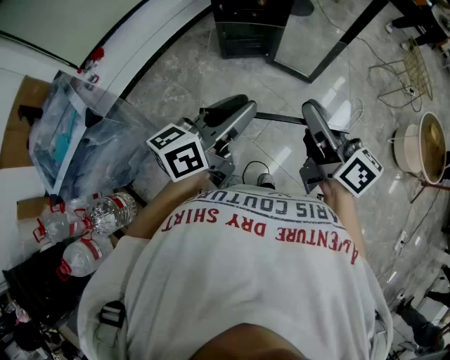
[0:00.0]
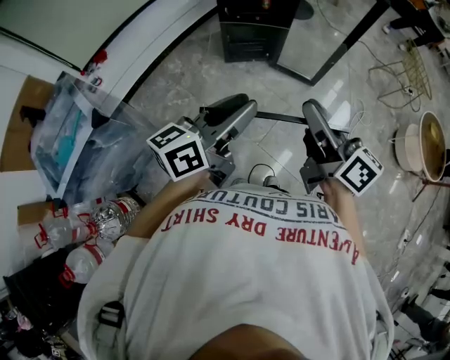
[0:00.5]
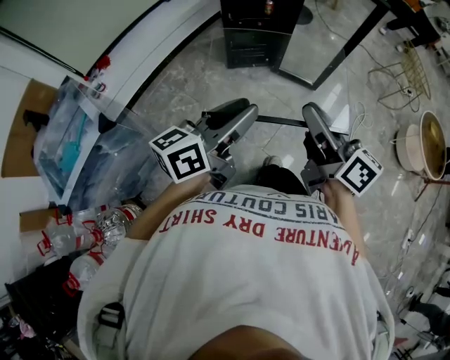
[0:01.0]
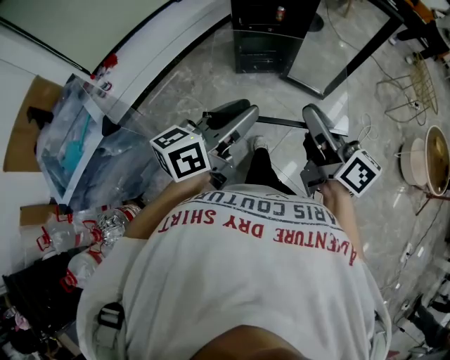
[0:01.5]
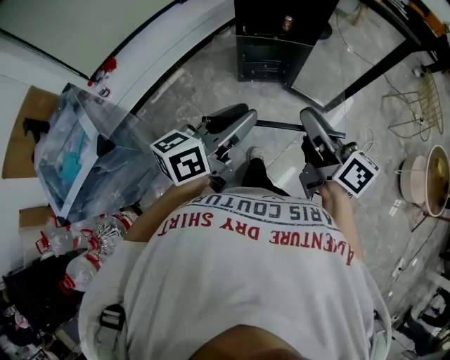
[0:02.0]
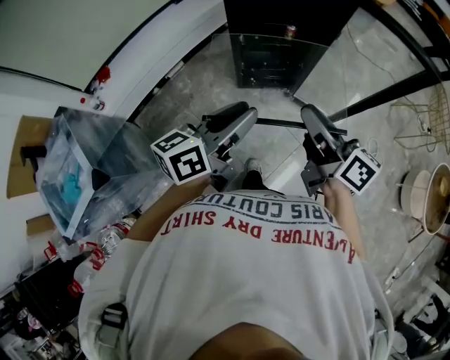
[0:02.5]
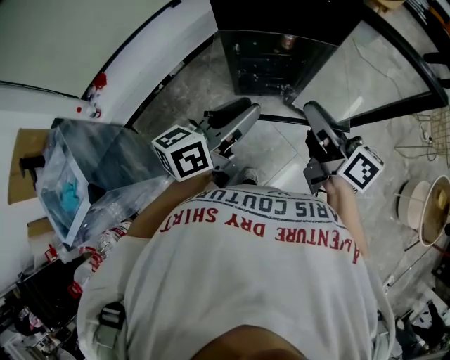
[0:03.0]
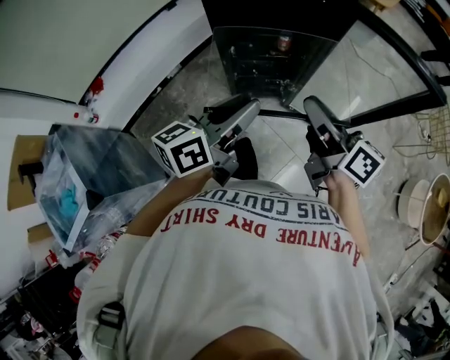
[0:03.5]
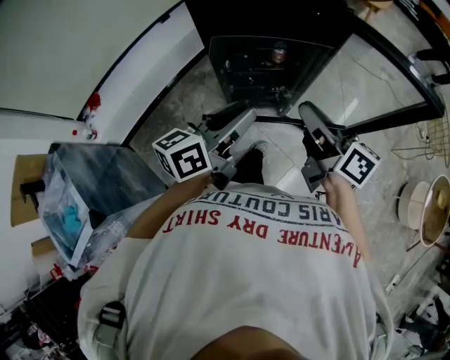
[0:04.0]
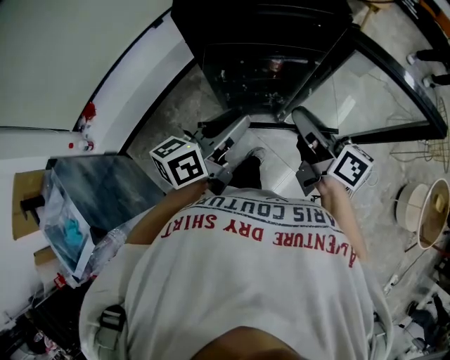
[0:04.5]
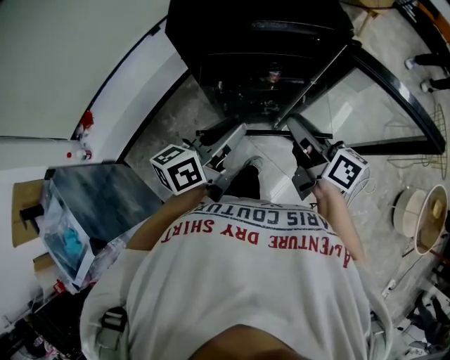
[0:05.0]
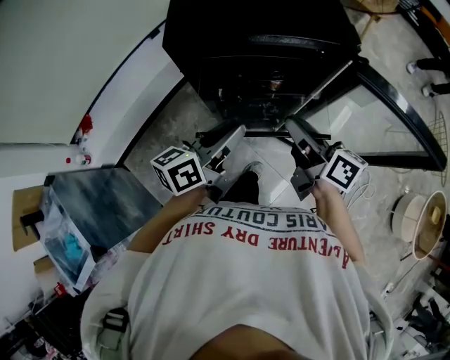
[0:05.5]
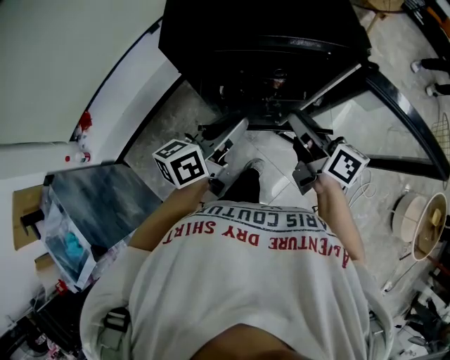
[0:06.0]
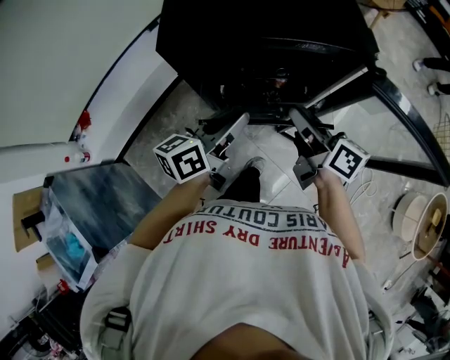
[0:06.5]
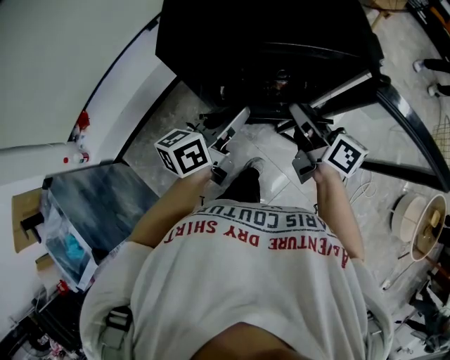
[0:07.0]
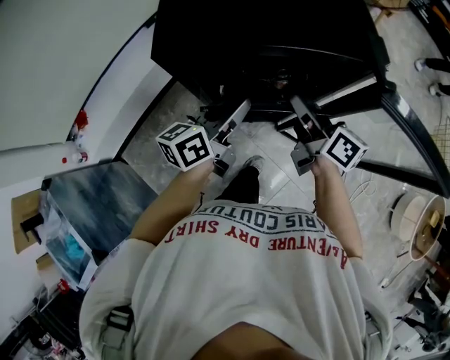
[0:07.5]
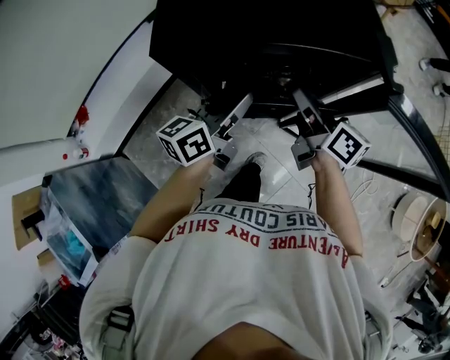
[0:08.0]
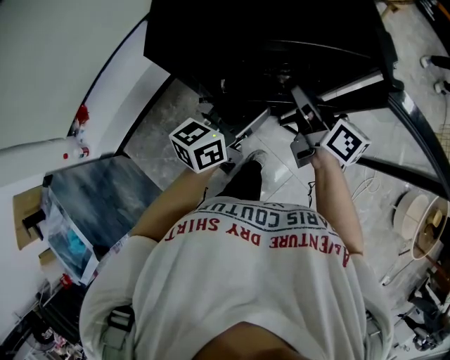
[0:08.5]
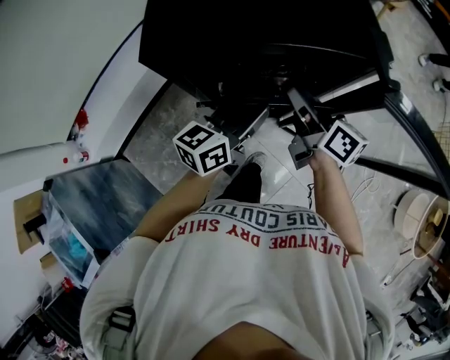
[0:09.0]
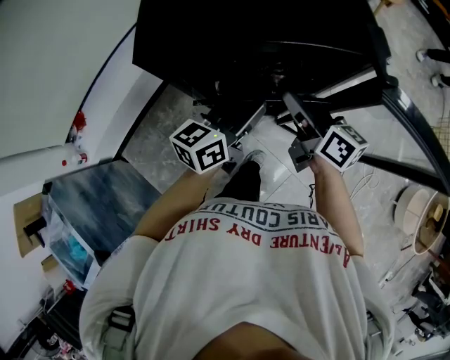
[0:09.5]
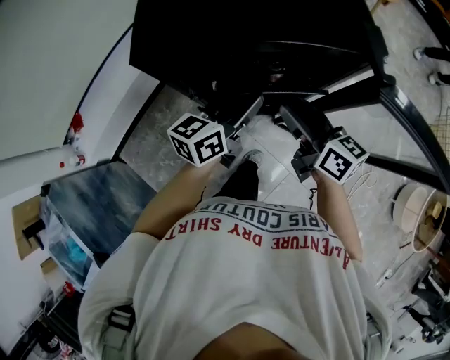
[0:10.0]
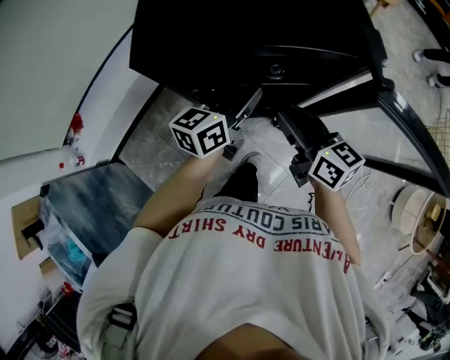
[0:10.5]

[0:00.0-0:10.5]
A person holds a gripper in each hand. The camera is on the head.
0:00.0 to 0:02.0: The grippers both shift forward and to the left by some 15 cm.
0:02.0 to 0:04.0: The grippers both shift forward by some 30 cm.
0:04.0 to 0:06.5: The grippers both shift forward and downward by about 15 cm.
0:06.5 to 0:08.5: The right gripper goes roughly 5 cm forward. The left gripper moves about 5 cm.
0:08.5 to 0:10.5: The right gripper moves backward, some 5 cm. The left gripper moves forward, approximately 5 cm, and closes its fingers.

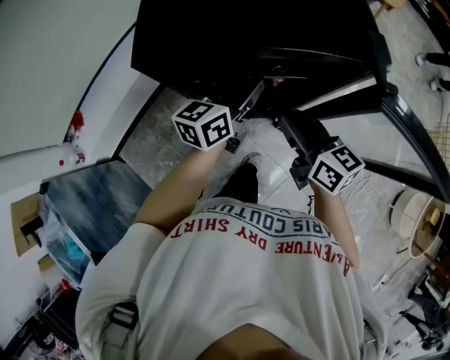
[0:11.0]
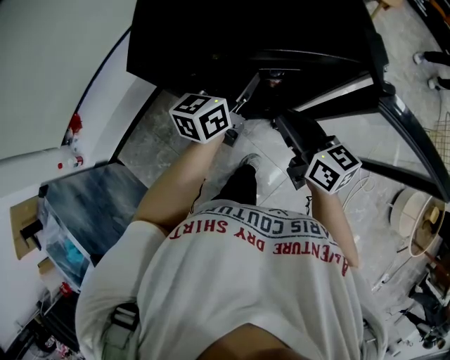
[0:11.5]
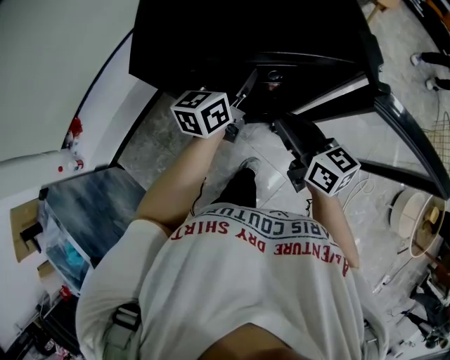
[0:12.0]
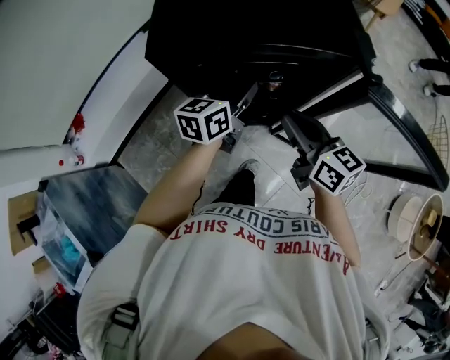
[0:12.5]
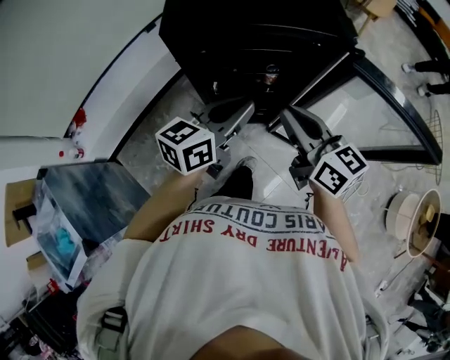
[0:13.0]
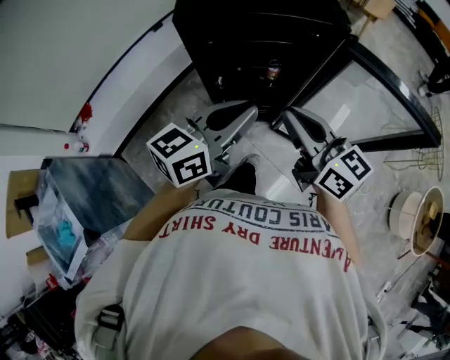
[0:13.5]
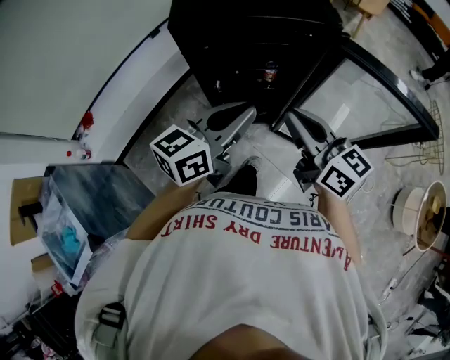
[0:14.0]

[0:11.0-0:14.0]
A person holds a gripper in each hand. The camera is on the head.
0:11.0 to 0:12.5: There are only small adjustments of the grippers.
0:12.5 to 0:14.0: The right gripper travels backward and upward by some 15 cm; the left gripper heads backward and upward, covering roughly 25 cm, and closes its fingers.

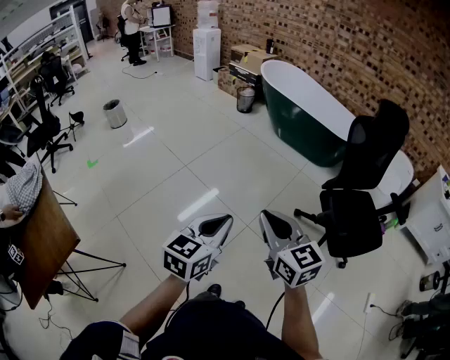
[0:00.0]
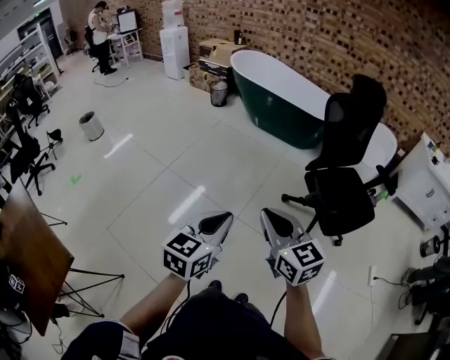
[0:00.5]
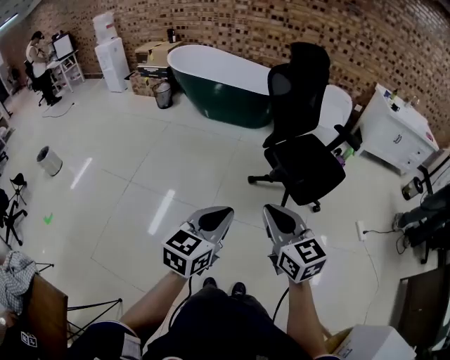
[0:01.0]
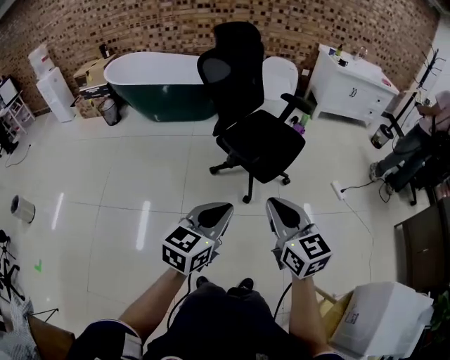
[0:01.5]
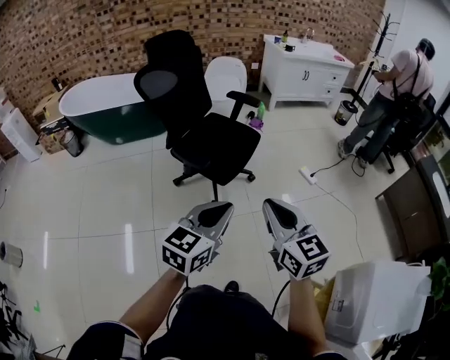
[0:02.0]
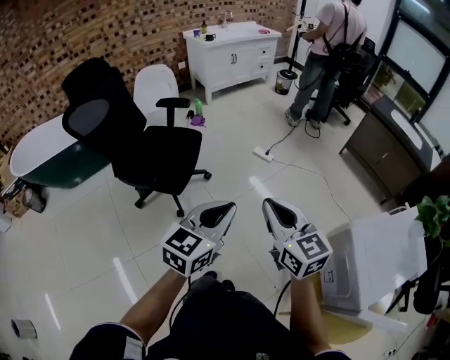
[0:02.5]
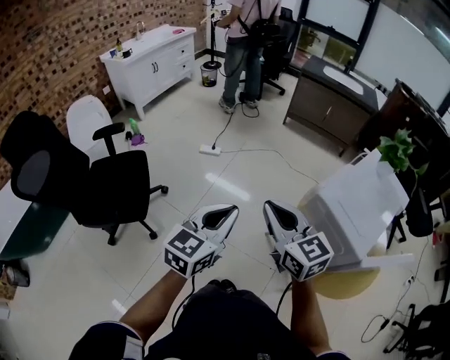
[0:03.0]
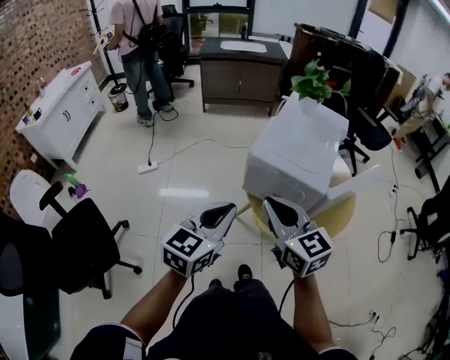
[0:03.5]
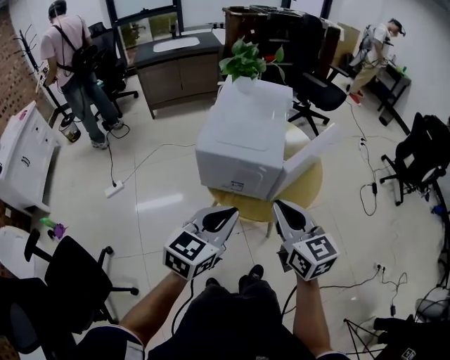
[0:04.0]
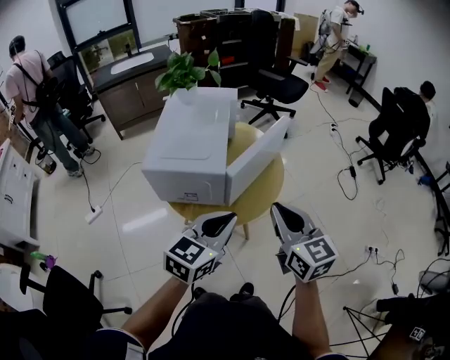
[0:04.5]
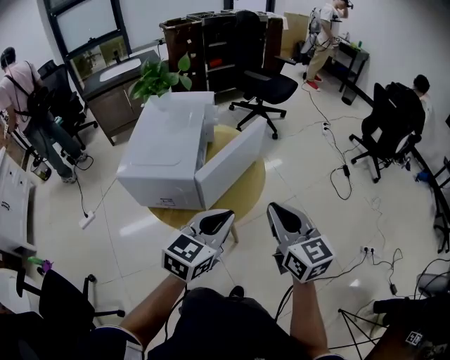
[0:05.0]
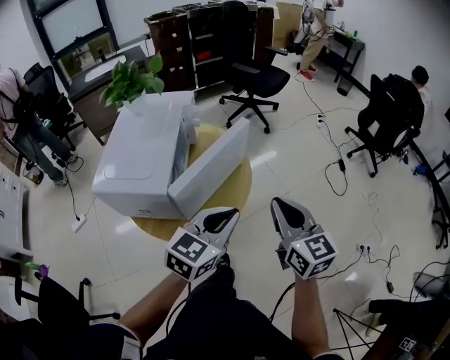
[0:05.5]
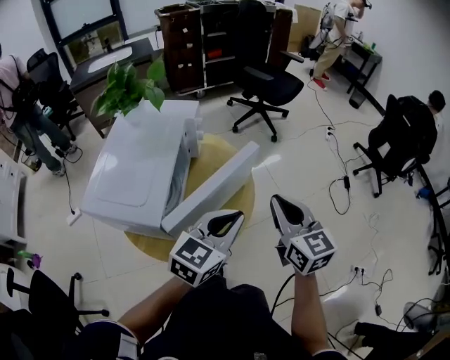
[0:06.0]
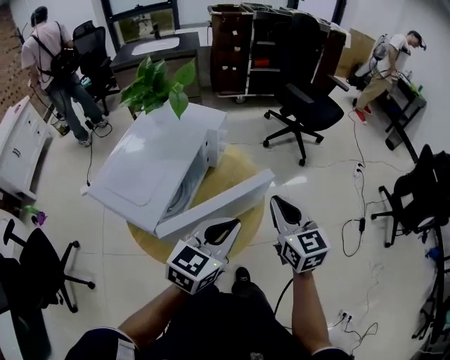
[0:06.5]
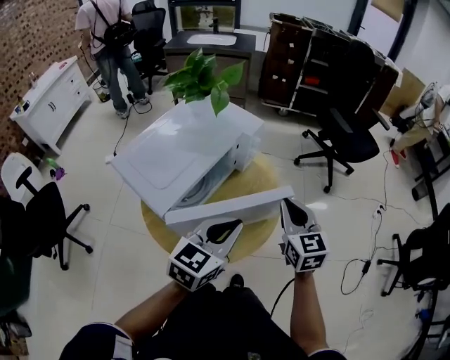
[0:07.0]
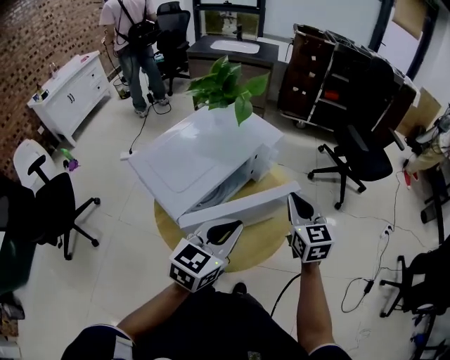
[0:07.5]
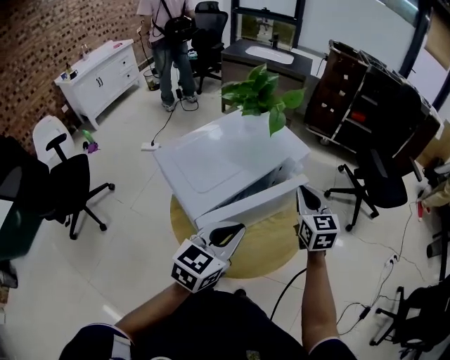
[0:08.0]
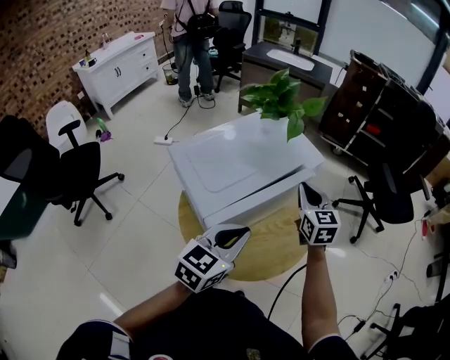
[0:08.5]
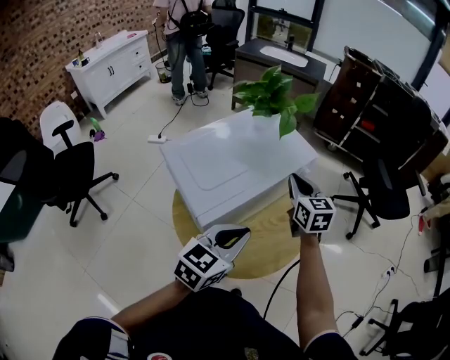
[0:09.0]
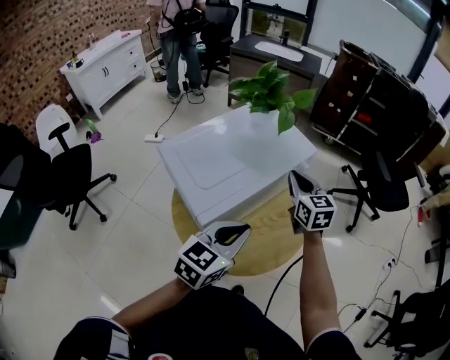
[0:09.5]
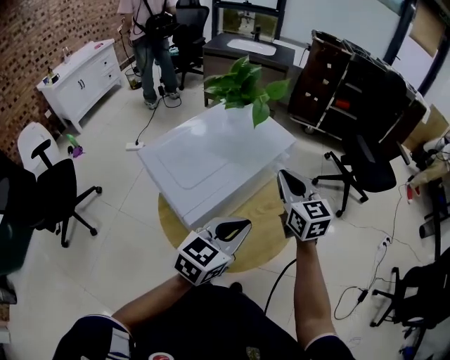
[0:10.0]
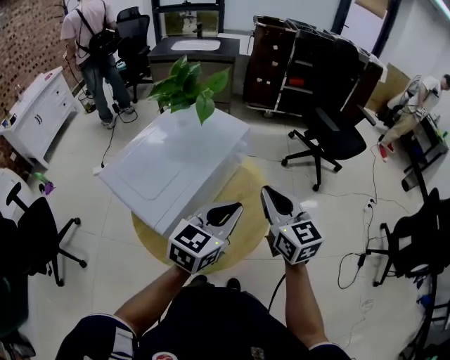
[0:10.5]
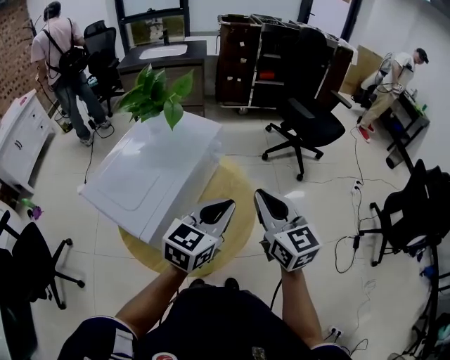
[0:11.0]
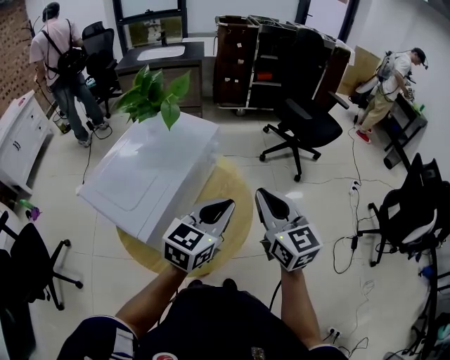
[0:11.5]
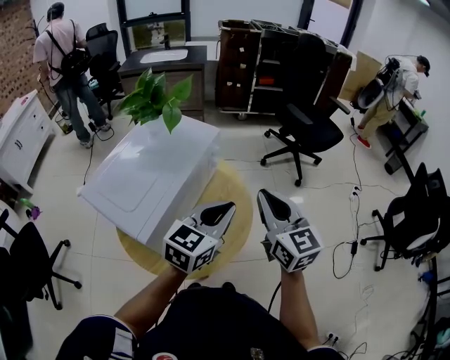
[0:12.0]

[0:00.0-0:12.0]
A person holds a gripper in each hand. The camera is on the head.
0:00.0 to 0:02.0: The pair of grippers is taken about 40 cm. The left gripper changes its angle by some 60 degrees, while the right gripper changes its angle by about 60 degrees.
0:02.0 to 0:04.0: The pair of grippers is taken roughly 40 cm. The right gripper swivels some 90 degrees. Meanwhile the left gripper turns by about 100 degrees.
0:04.0 to 0:06.0: The grippers both shift to the right and forward by some 35 cm.
0:06.0 to 0:08.0: The left gripper ends up some 10 cm from where it was, and rotates some 50 degrees. Meanwhile the right gripper changes place by some 25 cm, and rotates roughly 40 degrees.
0:08.0 to 0:10.0: The right gripper ends up some 5 cm from where it was.
0:10.0 to 0:12.0: The left gripper travels to the right by approximately 10 cm; the right gripper travels to the right and backward by about 15 cm.

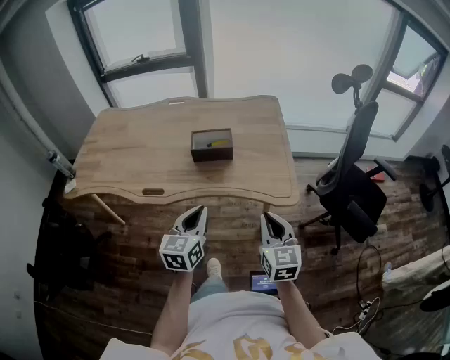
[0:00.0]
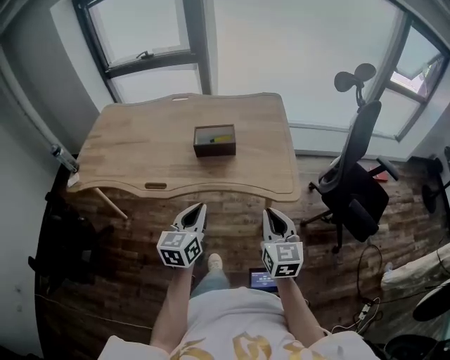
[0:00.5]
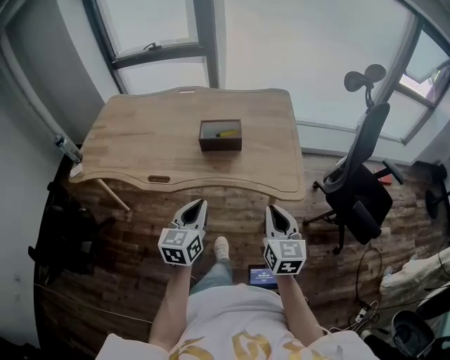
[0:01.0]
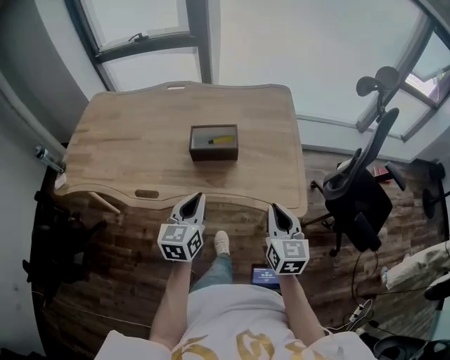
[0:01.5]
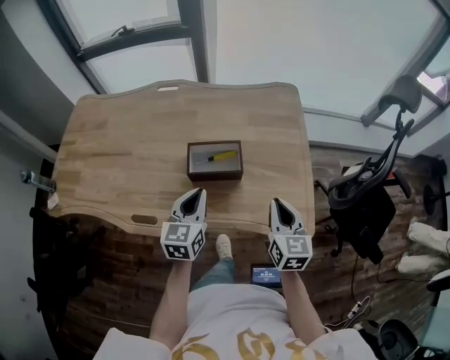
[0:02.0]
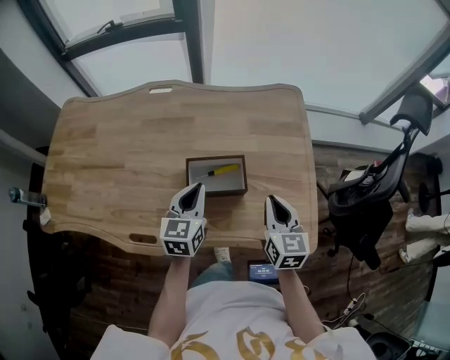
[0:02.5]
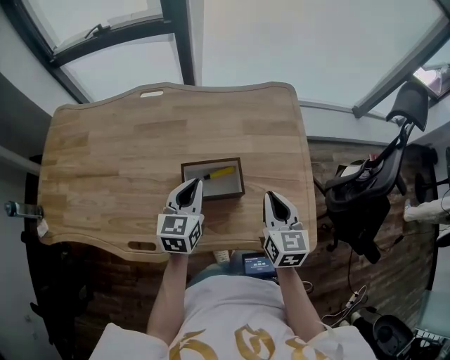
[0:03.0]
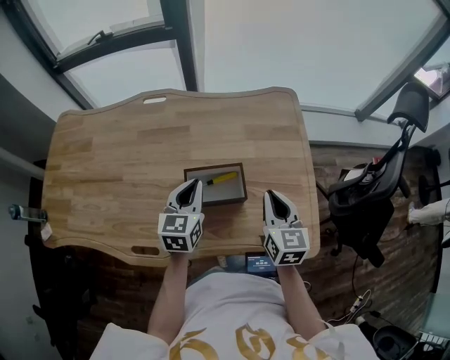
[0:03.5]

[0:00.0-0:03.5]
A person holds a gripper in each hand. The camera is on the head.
0:00.0 to 0:02.0: The grippers both shift forward by approximately 25 cm.
0:02.0 to 0:03.5: Both grippers travel together forward, about 15 cm.
